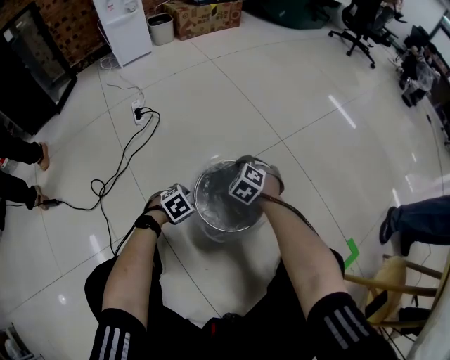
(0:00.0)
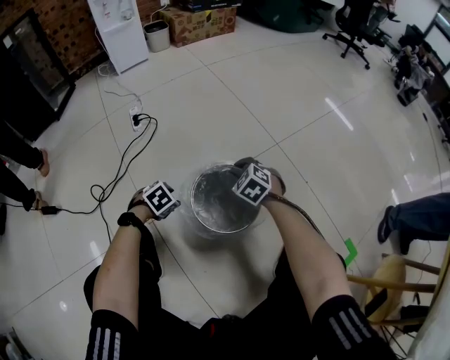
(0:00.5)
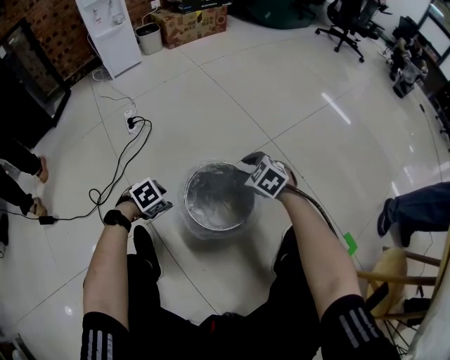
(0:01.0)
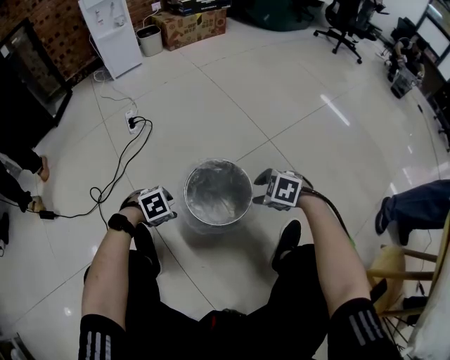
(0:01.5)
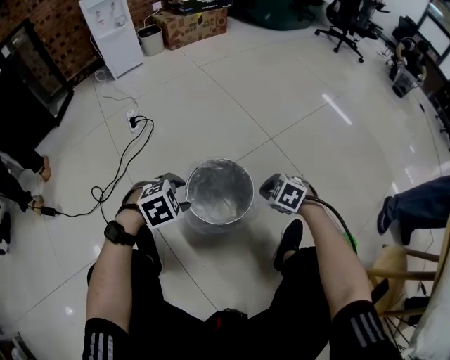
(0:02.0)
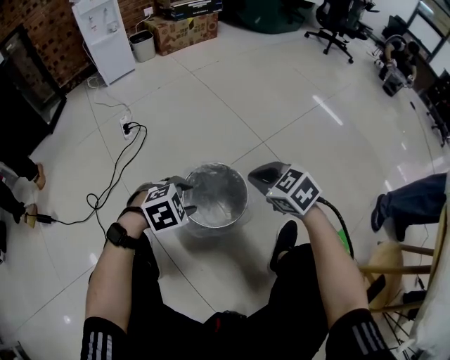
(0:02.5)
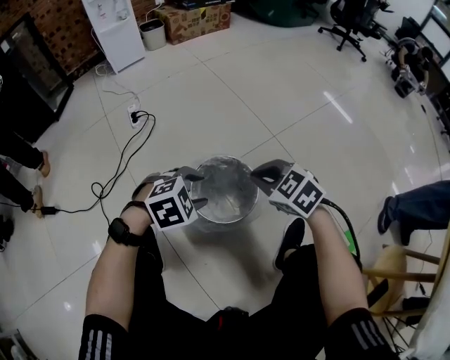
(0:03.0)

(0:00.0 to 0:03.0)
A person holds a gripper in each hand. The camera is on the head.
0:00.0 - 0:01.5: The right gripper changes place by some 20 cm, rotates roughly 30 degrees, and opens up; the left gripper goes roughly 5 cm upward.
0:01.5 - 0:03.0: The grippers both shift upward by approximately 15 cm. The left gripper changes its angle by about 20 degrees. Meanwhile the right gripper turns by approximately 30 degrees, and closes its fingers.

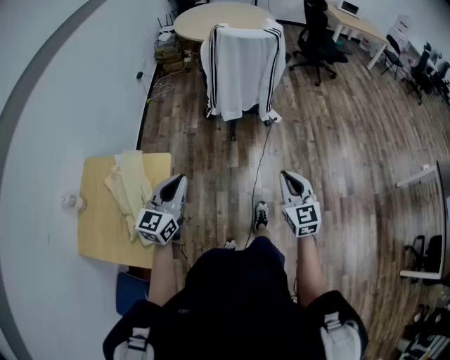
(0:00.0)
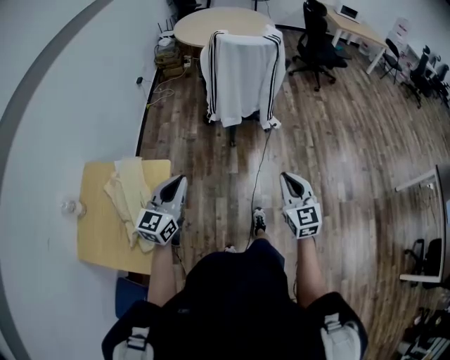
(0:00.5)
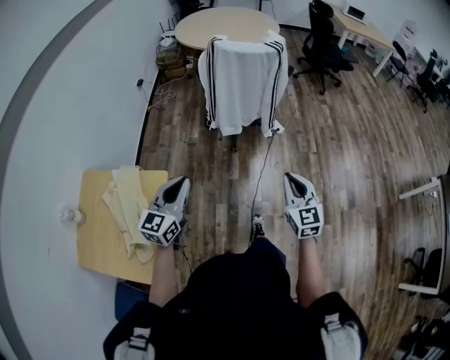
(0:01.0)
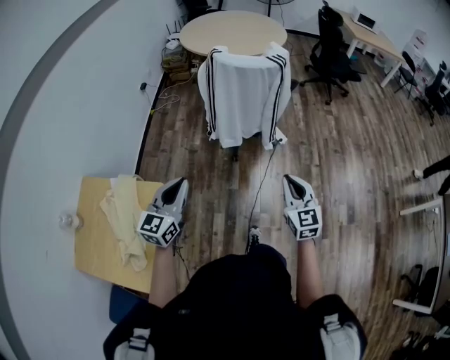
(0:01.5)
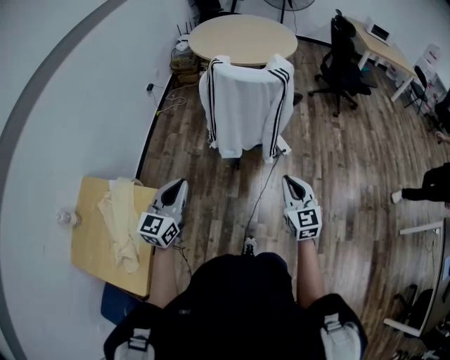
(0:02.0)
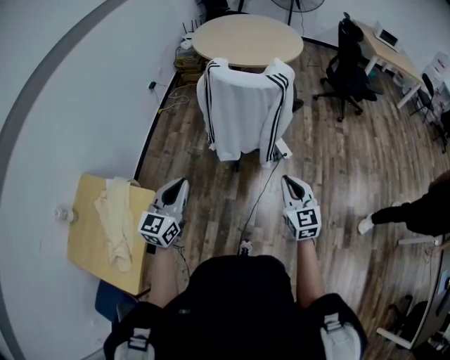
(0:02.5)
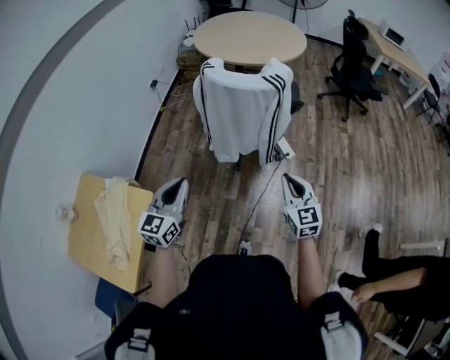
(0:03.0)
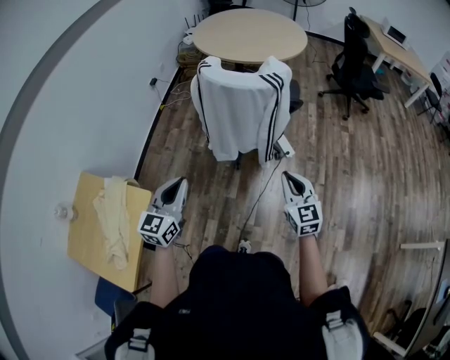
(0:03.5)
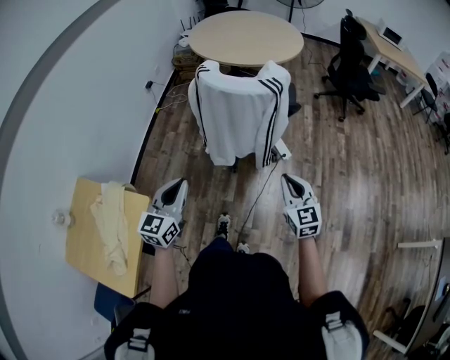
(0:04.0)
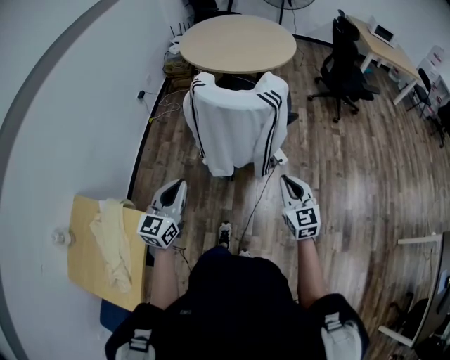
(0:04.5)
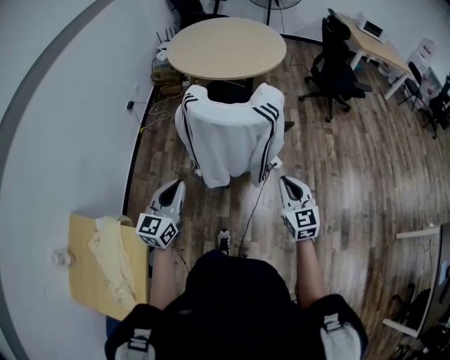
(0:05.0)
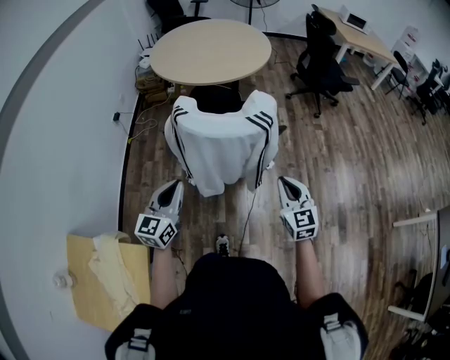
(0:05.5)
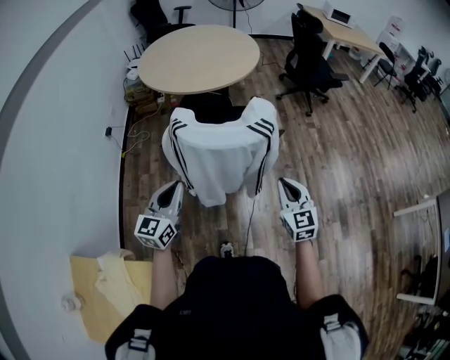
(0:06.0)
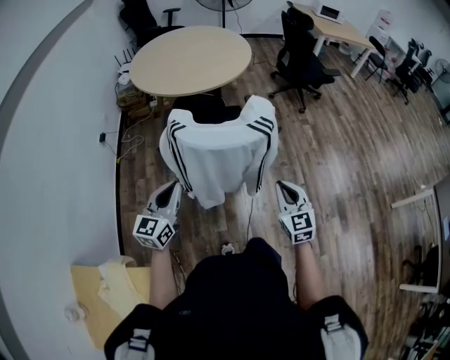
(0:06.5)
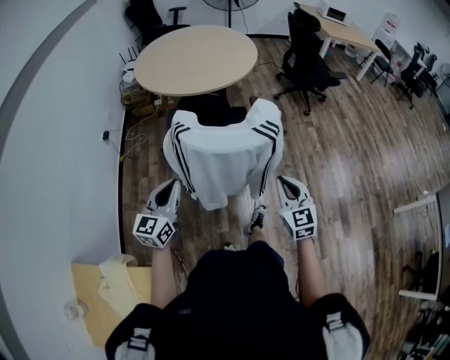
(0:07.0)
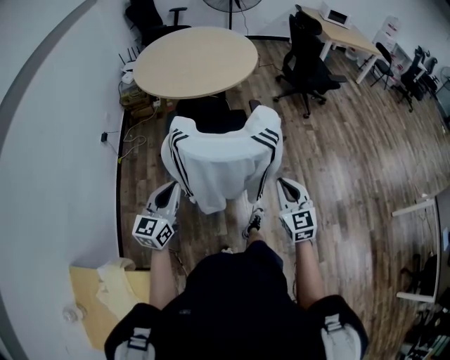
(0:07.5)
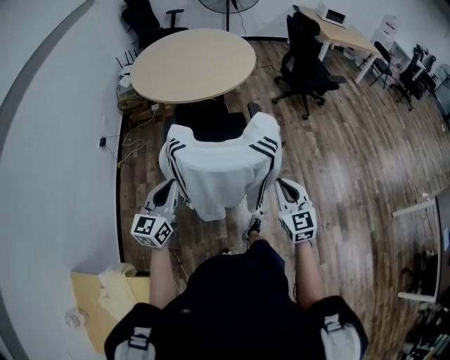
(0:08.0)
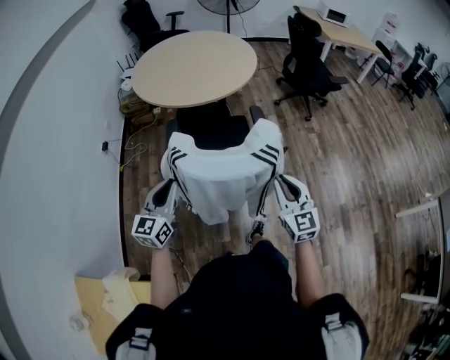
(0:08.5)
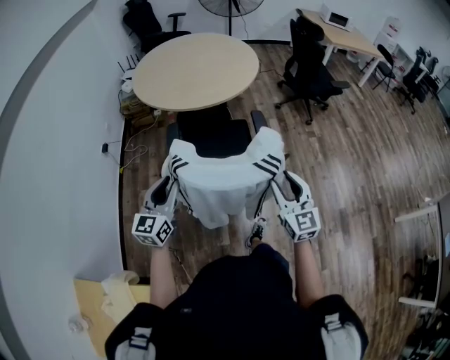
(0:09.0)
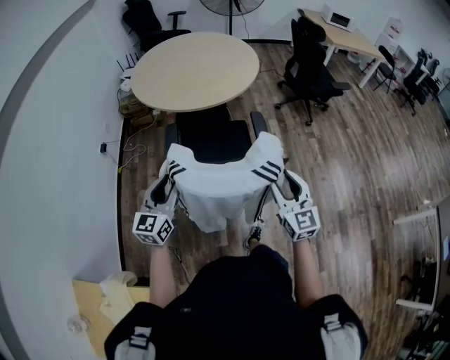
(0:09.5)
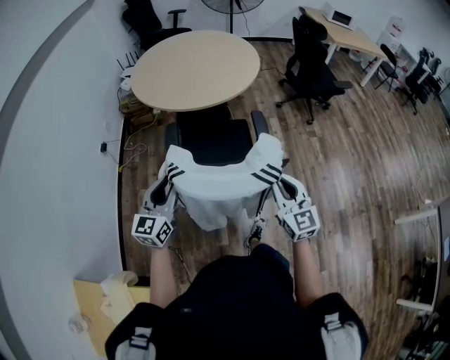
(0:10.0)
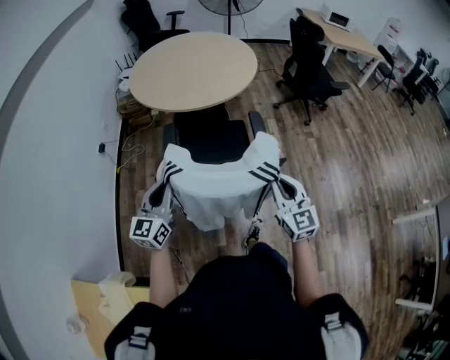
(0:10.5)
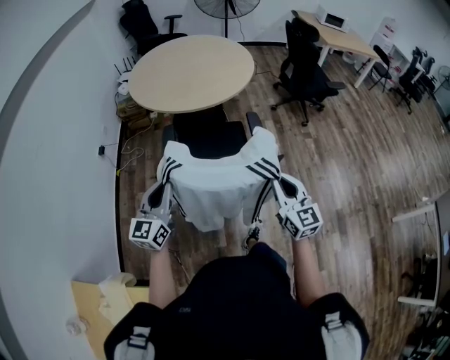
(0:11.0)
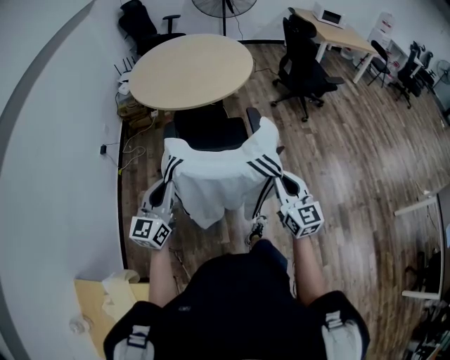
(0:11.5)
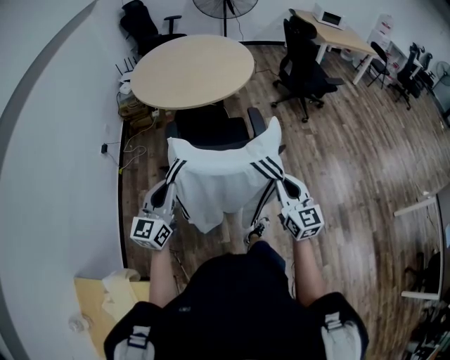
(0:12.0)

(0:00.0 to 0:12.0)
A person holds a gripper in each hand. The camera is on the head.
0:00.0 - 0:02.0: Both grippers travel together forward, about 25 cm.
0:02.0 - 0:04.0: The grippers both shift forward and to the right by roughly 10 cm.
0:04.0 - 0:06.0: The left gripper travels forward by roughly 25 cm. The right gripper travels forward by about 15 cm.
0:06.0 - 0:08.0: The two grippers go approximately 5 cm forward.
0:08.0 - 0:10.0: The grippers both shift forward by roughly 10 cm. The right gripper opens, then closes again. The left gripper opens up.
0:10.0 - 0:12.0: The grippers both shift backward by approximately 5 cm. The left gripper closes its fingers.

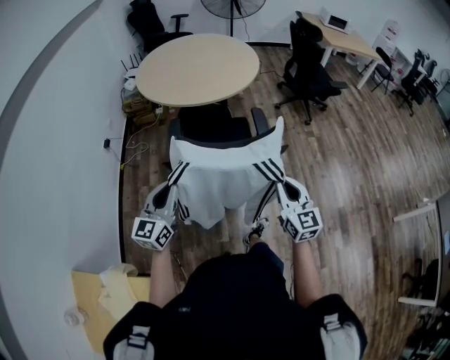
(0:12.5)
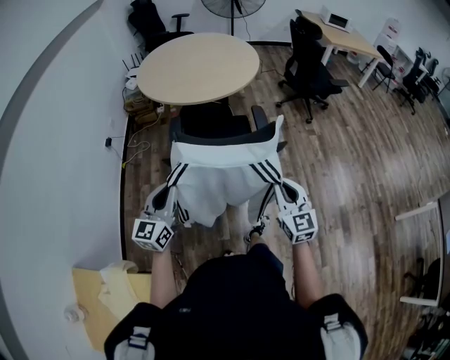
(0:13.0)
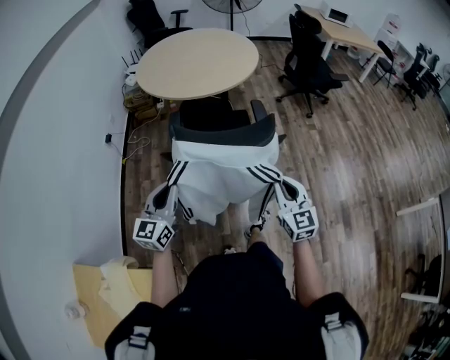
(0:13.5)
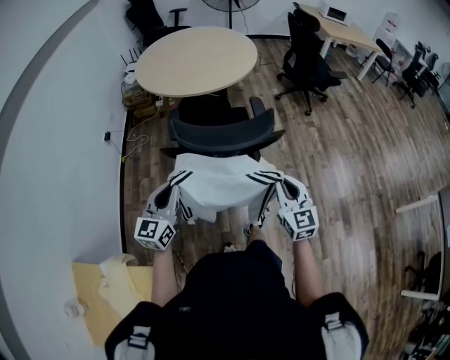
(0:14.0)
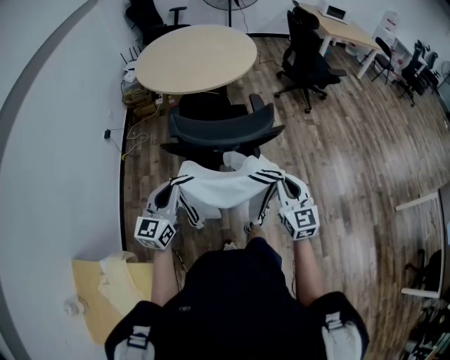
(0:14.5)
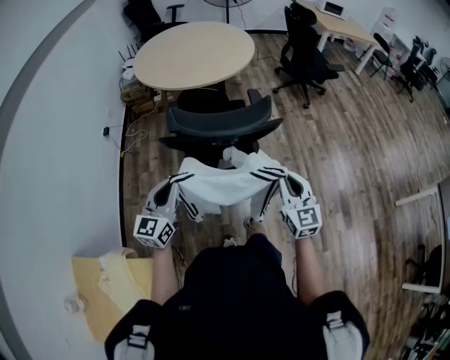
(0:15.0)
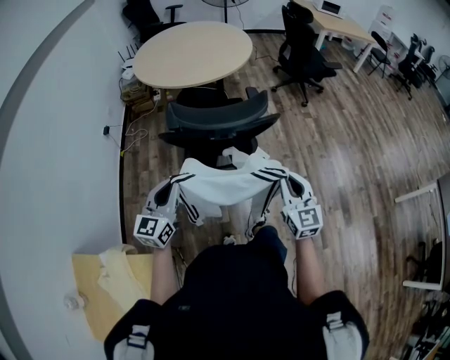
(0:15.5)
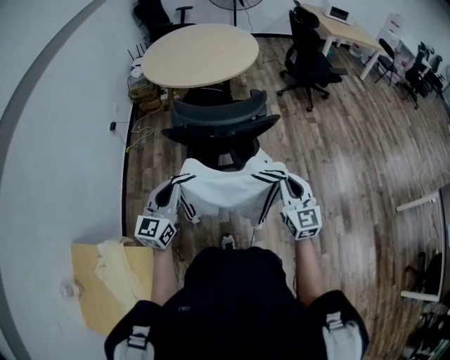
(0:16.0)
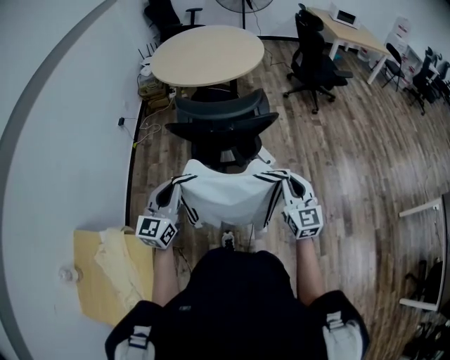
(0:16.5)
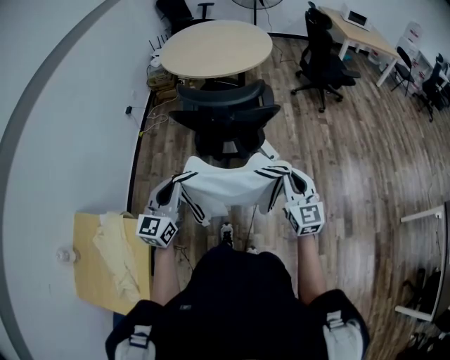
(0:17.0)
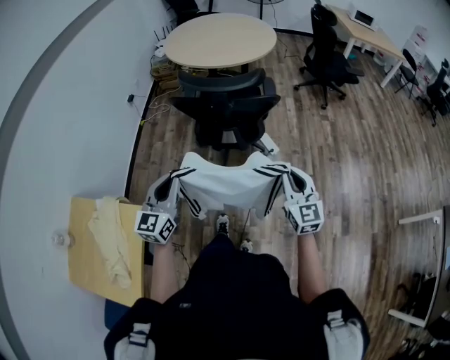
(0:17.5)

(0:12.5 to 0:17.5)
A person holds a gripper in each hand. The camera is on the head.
0:12.5 - 0:15.0: The two grippers go some 10 cm backward.
0:15.0 - 0:17.5: The grippers both shift backward and to the right by some 20 cm.

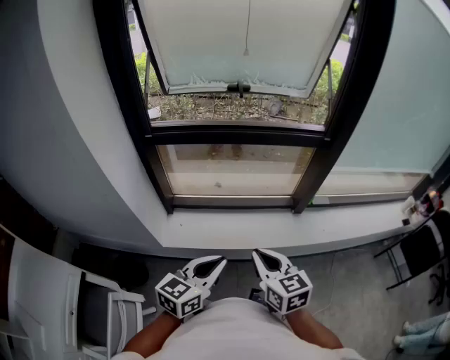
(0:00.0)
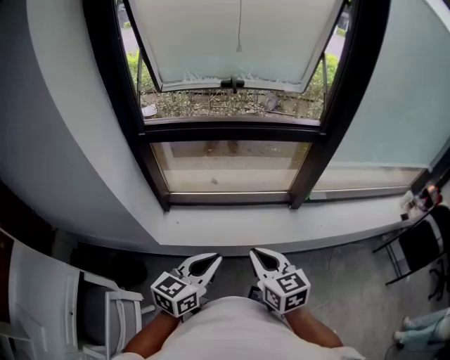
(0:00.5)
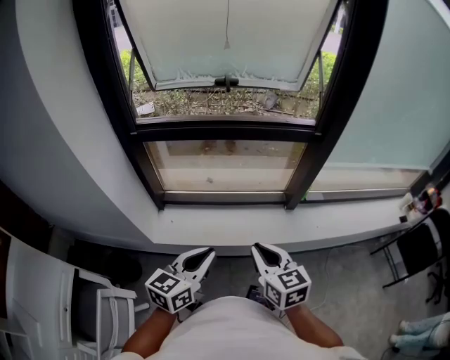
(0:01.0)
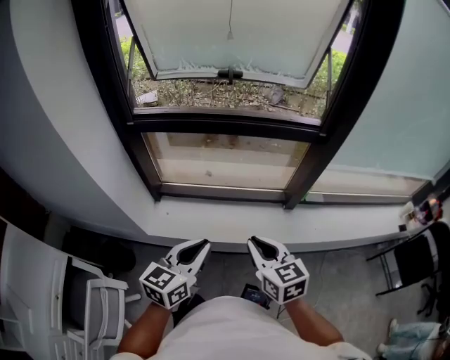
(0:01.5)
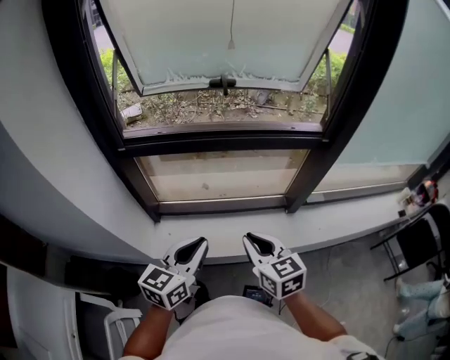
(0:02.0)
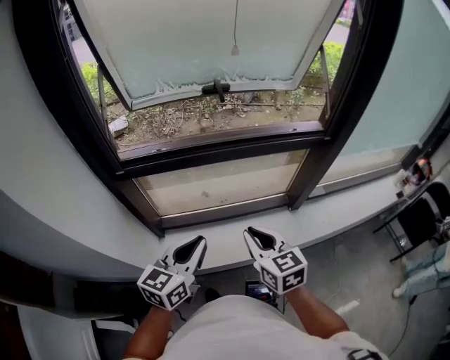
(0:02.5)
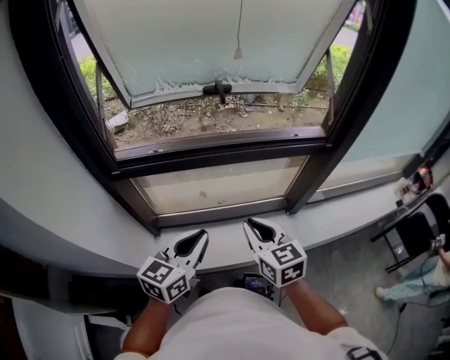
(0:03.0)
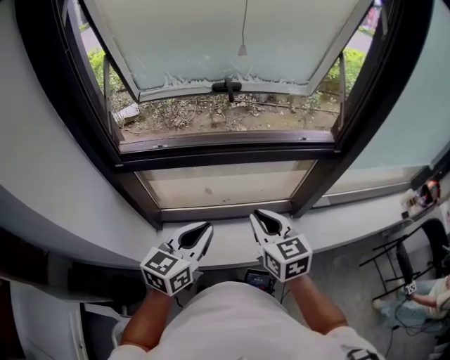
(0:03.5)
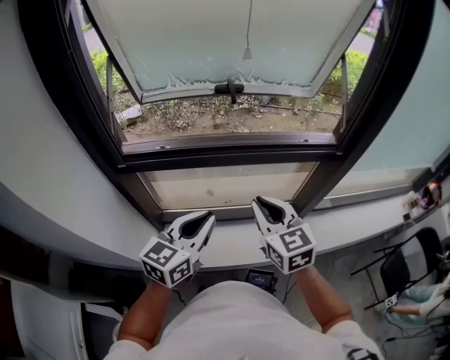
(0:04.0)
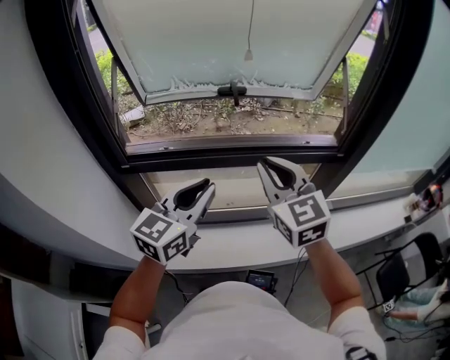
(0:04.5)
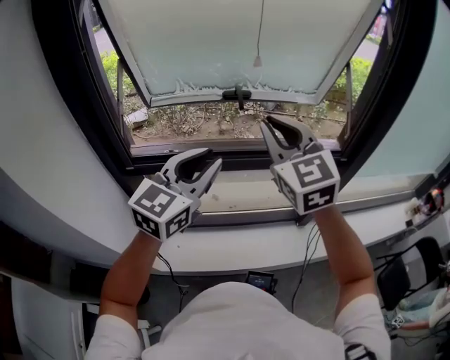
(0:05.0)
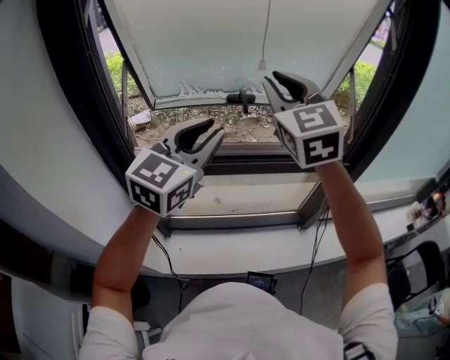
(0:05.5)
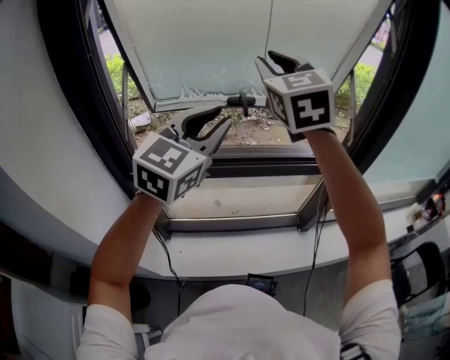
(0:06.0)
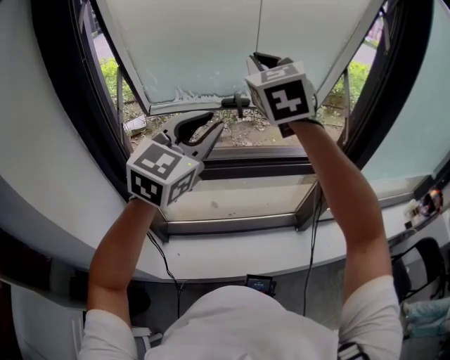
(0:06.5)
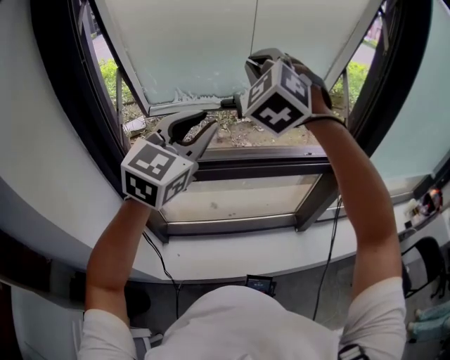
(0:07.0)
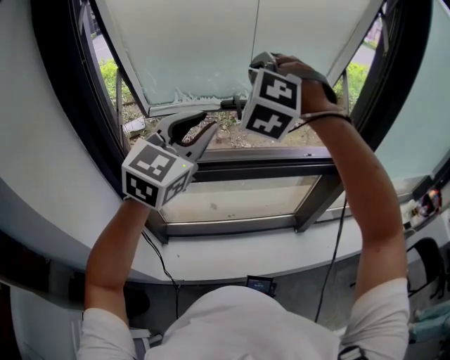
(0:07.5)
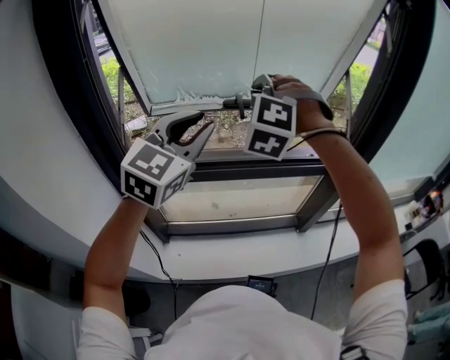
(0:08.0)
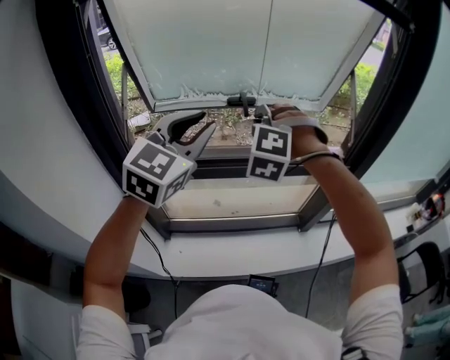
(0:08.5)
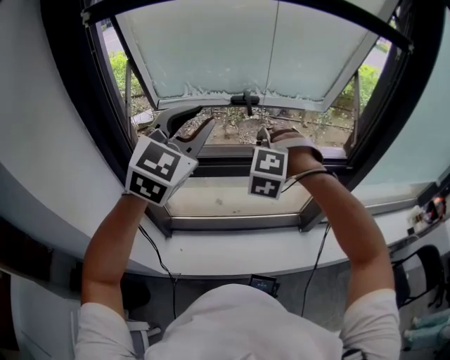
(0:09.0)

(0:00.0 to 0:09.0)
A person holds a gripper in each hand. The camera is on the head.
0:00.0 - 0:02.0: The grippers both shift forward by roughly 15 cm.
0:02.0 - 0:04.5: The grippers both shift forward and upward by roughly 25 cm. The right gripper turns by some 30 degrees.
0:04.5 - 0:07.0: The two grippers go approximately 20 cm upward and forward. The right gripper twists roughly 50 degrees counterclockwise, seen from behind. The left gripper changes its angle by about 20 degrees.
0:07.0 - 0:09.0: The right gripper shifts some 25 cm downward, and rotates roughly 40 degrees.
